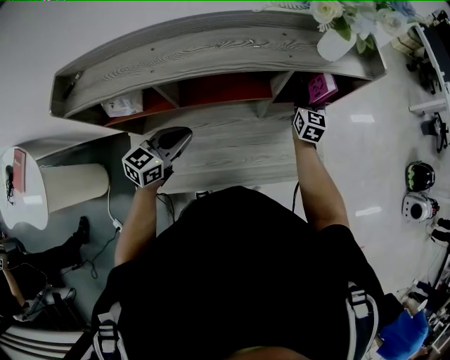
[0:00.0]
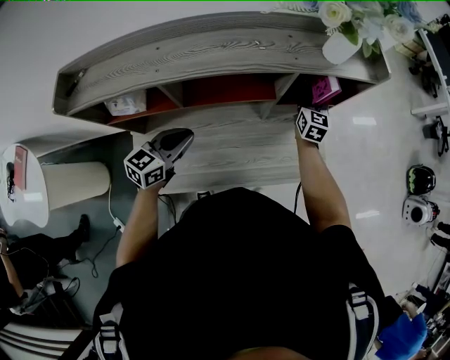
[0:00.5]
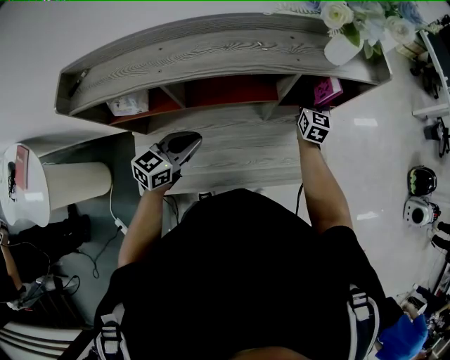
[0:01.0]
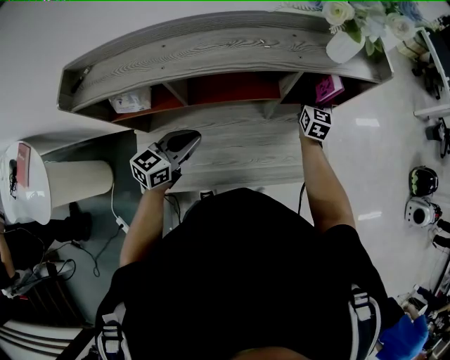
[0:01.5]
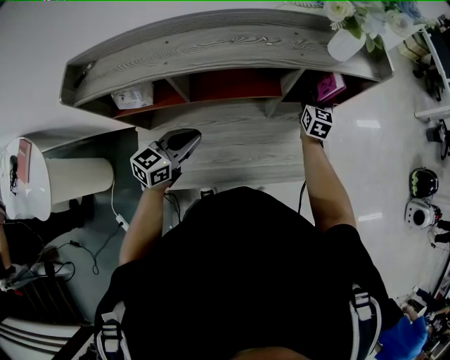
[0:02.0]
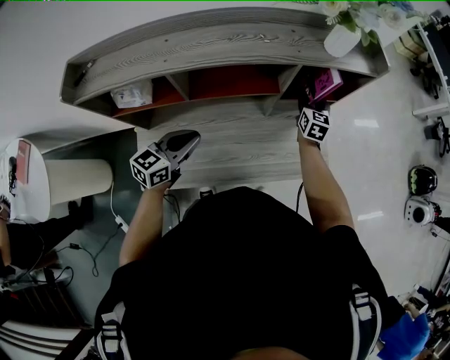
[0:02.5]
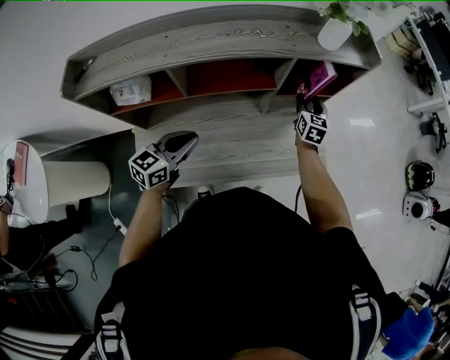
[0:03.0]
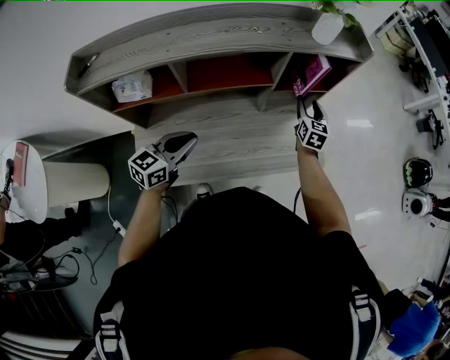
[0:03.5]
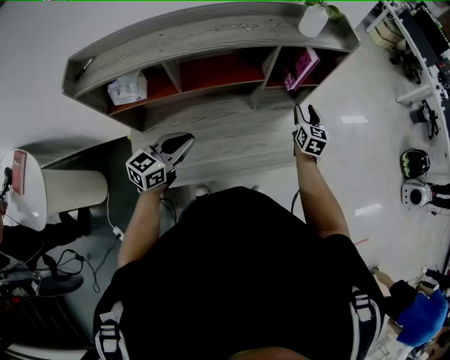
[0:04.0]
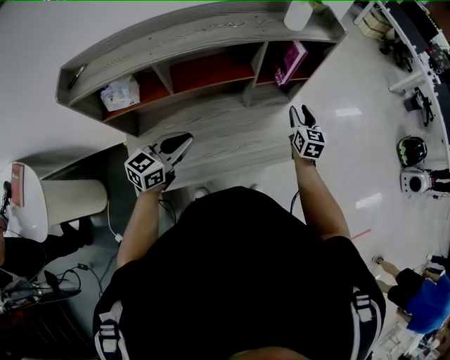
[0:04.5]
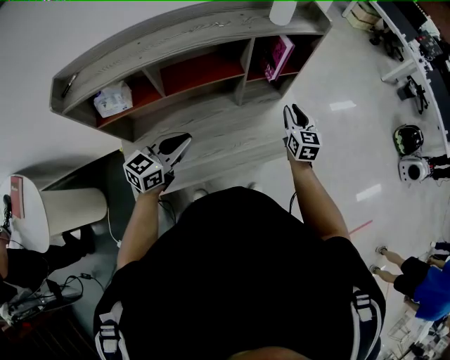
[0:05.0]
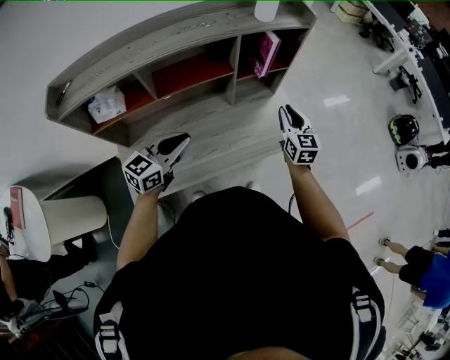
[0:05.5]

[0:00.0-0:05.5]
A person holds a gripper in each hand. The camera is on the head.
0:00.0 to 0:02.0: The grippers make only small movements.
0:02.0 to 0:03.5: The left gripper moves backward, roughly 5 cm; the right gripper heads backward and to the right, covering about 10 cm.
0:03.5 to 0:05.5: The left gripper moves to the right, roughly 5 cm; the right gripper moves backward, upward and to the right, about 15 cm, and closes.

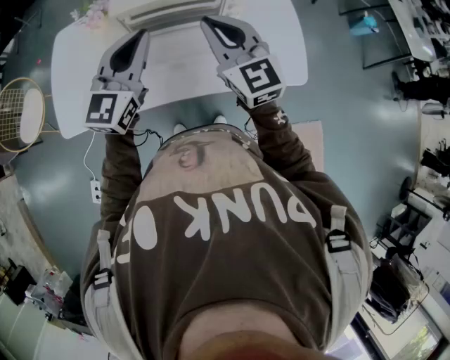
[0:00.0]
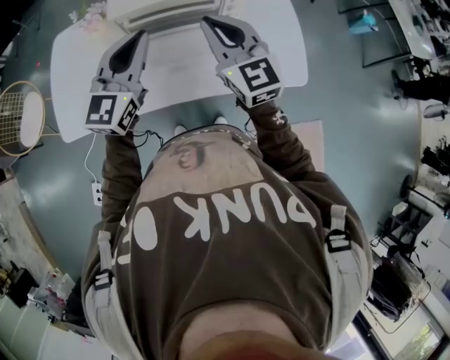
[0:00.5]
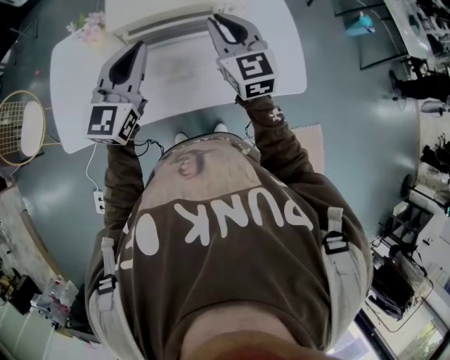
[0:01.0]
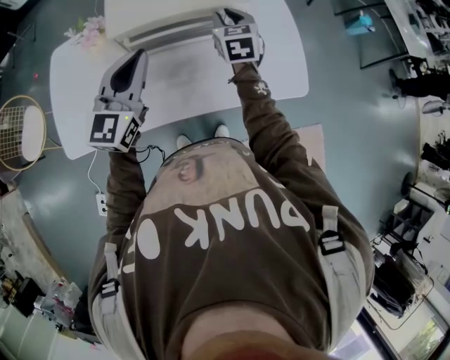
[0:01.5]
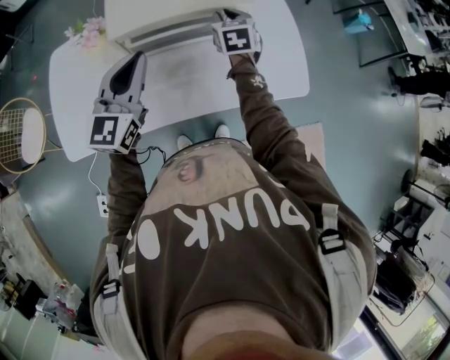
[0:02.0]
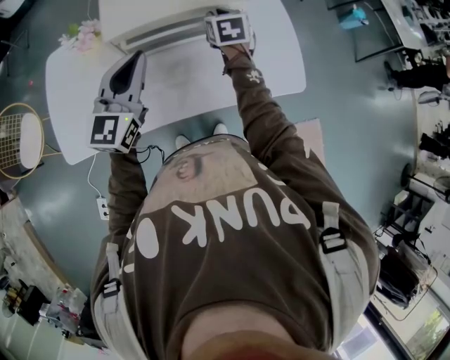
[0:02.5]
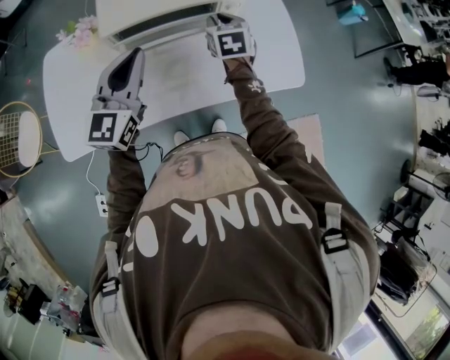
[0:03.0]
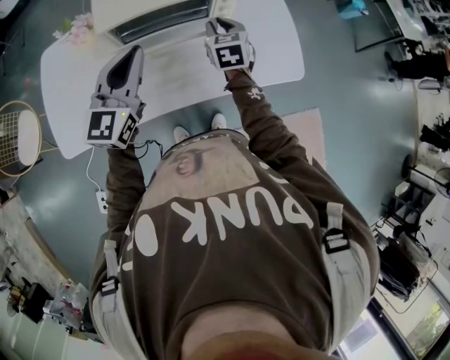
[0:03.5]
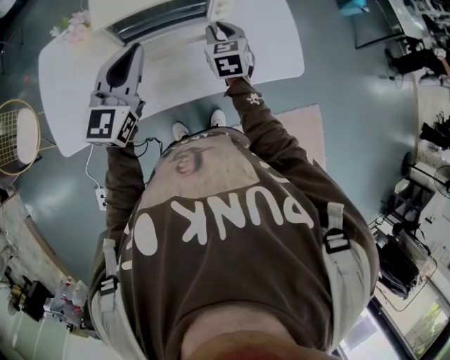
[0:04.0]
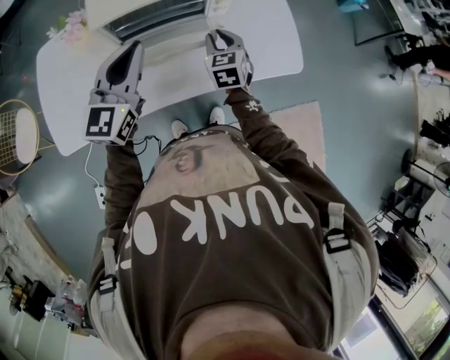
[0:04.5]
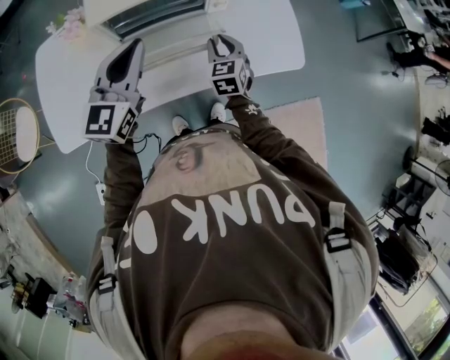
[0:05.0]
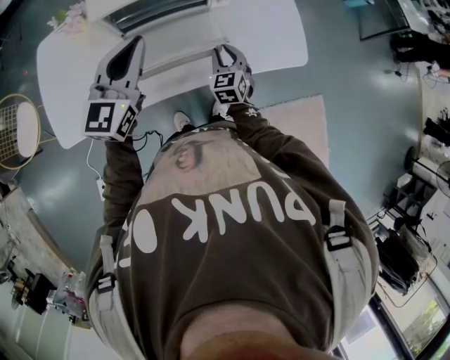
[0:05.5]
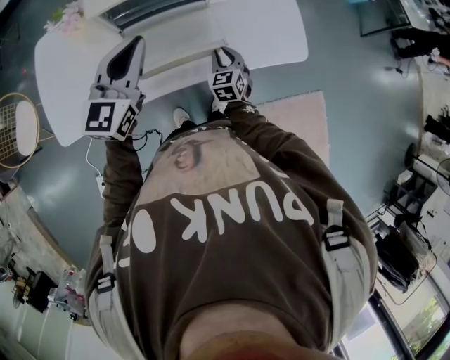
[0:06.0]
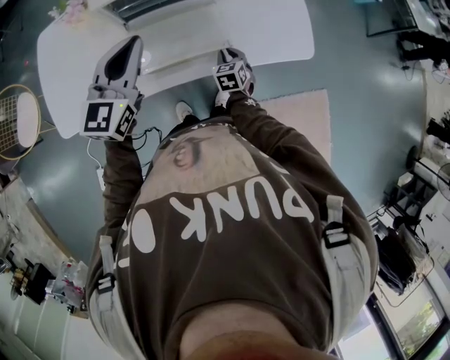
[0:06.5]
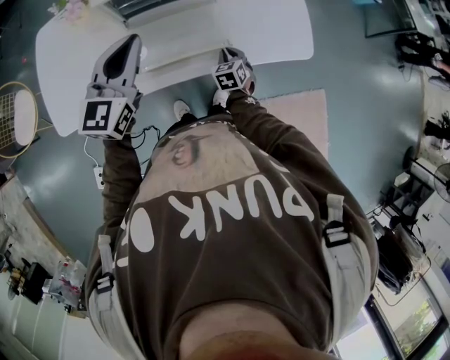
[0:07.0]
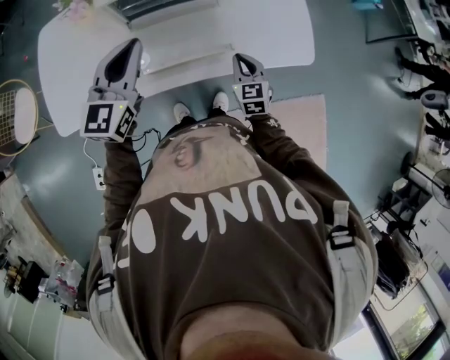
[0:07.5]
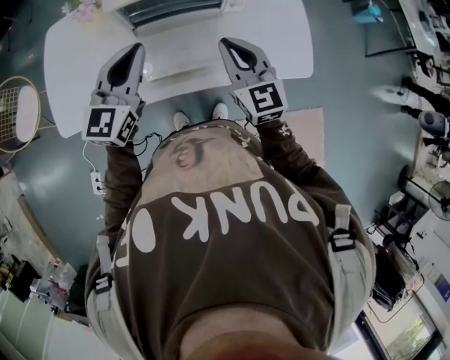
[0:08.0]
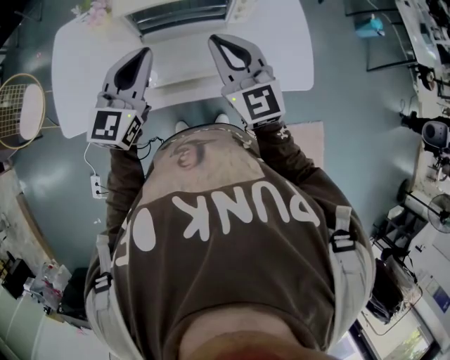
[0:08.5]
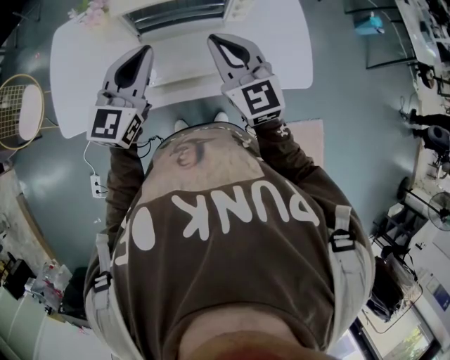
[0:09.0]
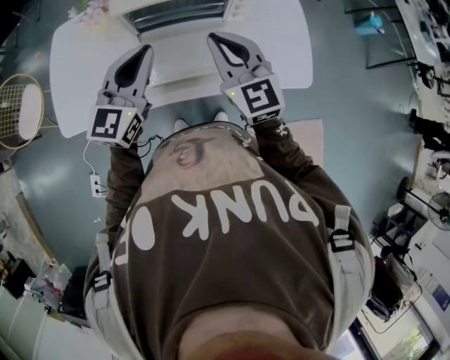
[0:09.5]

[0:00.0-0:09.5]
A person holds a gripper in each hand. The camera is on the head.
0:00.0 to 0:02.0: The right gripper travels forward and downward by about 25 cm, and swivels about 40 degrees, while the left gripper changes place by some 5 cm.
0:02.0 to 0:04.0: The right gripper moves backward, approximately 10 cm.
0:04.0 to 0:05.5: The right gripper travels downward and backward by roughly 15 cm.
0:05.5 to 0:07.5: The right gripper moves about 10 cm downward and comes back, and closes its fingers.
0:07.5 to 0:09.5: The right gripper travels upward and to the left by about 25 cm, and rotates about 30 degrees.

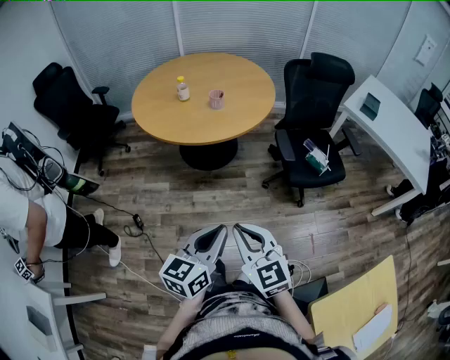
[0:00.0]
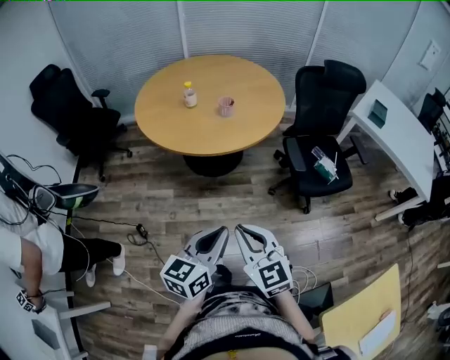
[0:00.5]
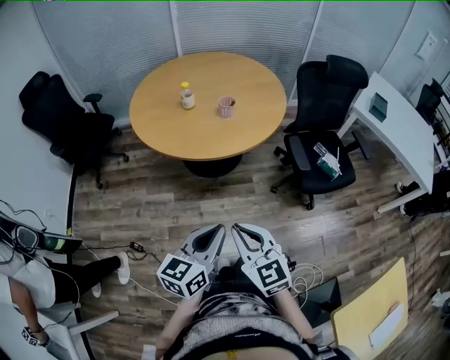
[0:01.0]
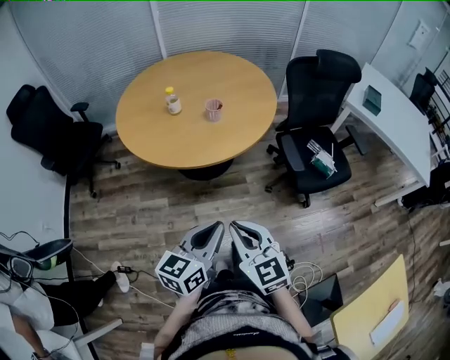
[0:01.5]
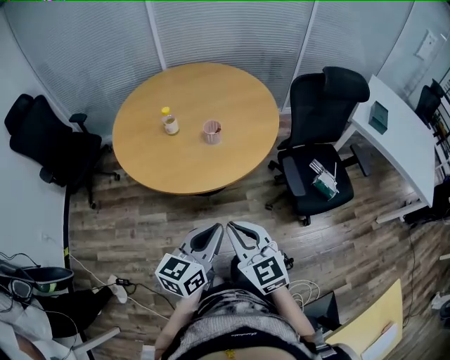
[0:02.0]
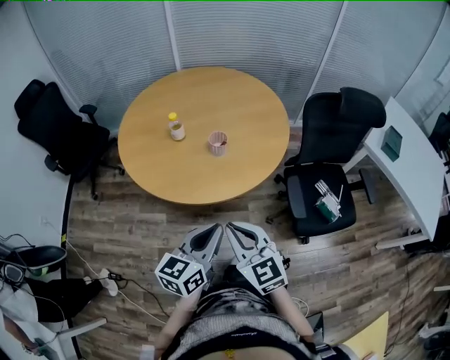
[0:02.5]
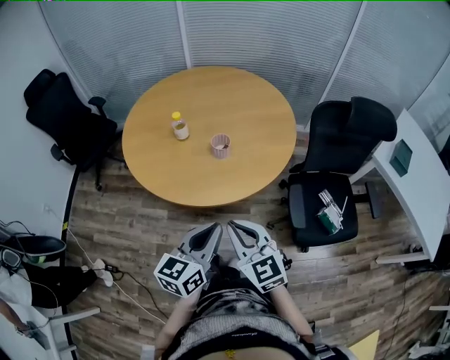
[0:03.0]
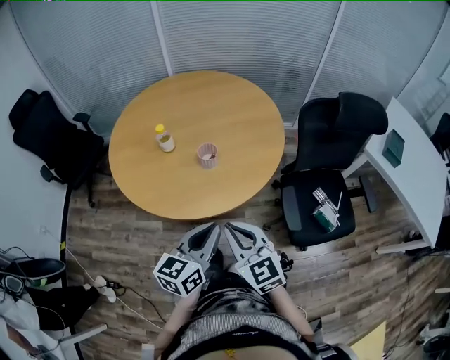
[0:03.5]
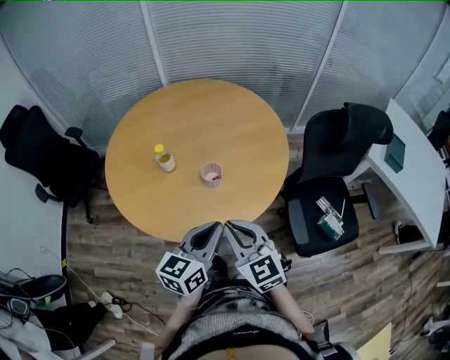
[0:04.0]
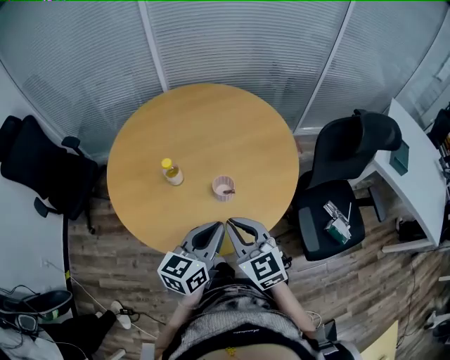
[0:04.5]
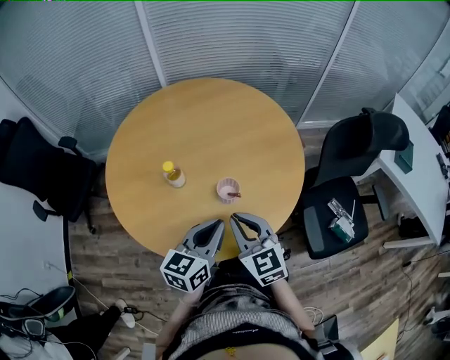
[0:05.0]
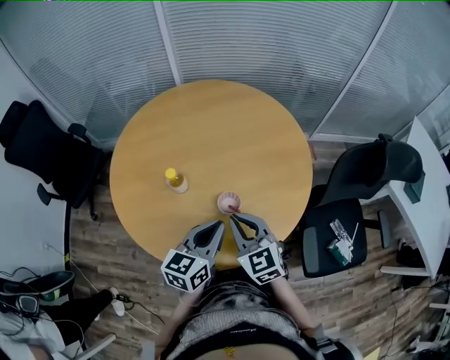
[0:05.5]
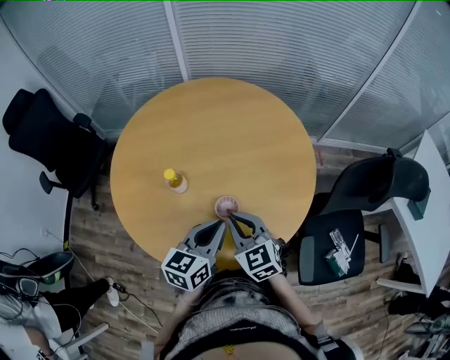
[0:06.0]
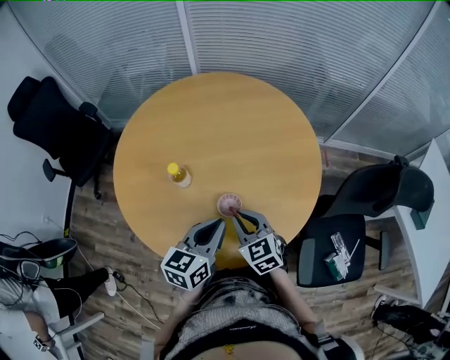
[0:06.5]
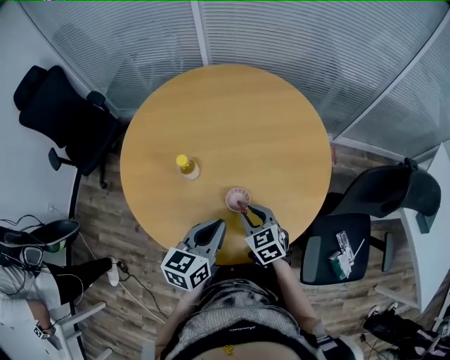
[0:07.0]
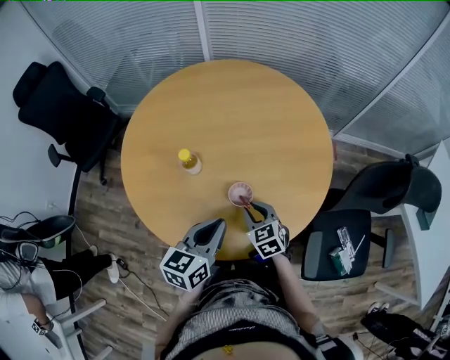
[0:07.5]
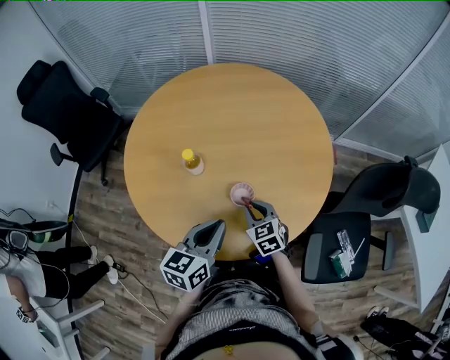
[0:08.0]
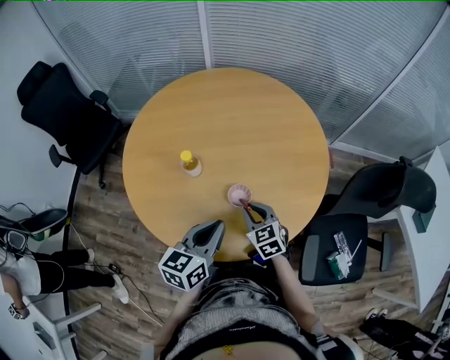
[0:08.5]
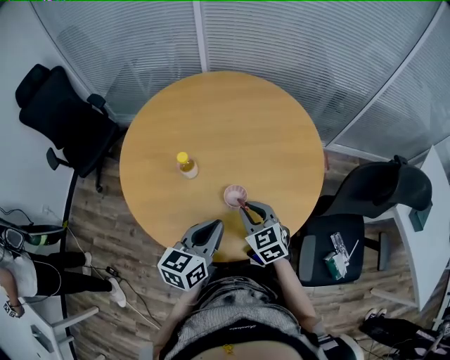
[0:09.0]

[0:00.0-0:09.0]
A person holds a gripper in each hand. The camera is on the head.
0:00.0 to 0:02.0: Both grippers move forward, approximately 30 cm.
0:02.0 to 0:04.5: Both grippers travel together forward, approximately 30 cm.
0:04.5 to 0:07.0: The left gripper goes about 10 cm forward and downward, while the right gripper travels downward and forward by about 20 cm, and rotates some 30 degrees.
0:07.0 to 0:09.0: The right gripper moves some 5 cm.

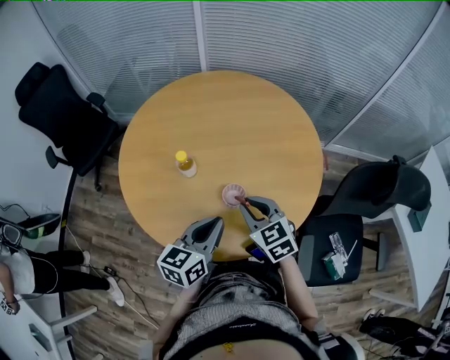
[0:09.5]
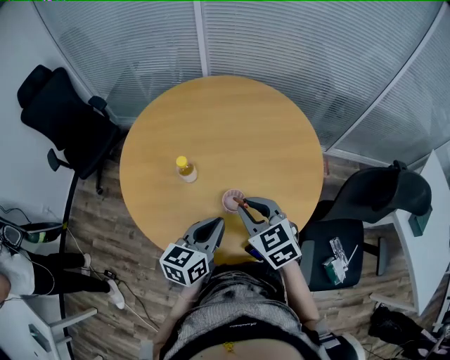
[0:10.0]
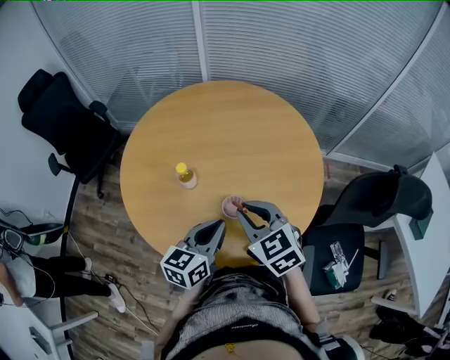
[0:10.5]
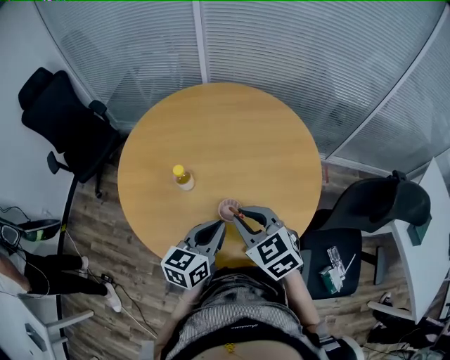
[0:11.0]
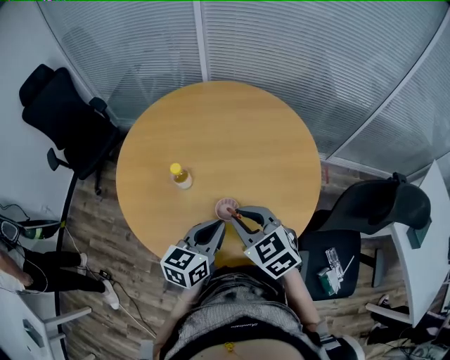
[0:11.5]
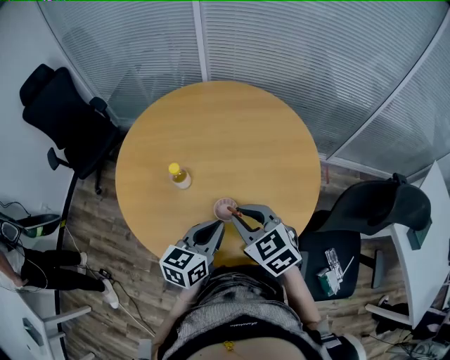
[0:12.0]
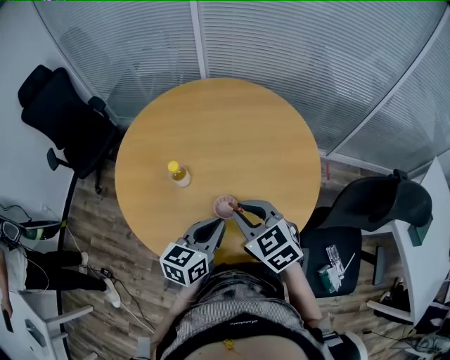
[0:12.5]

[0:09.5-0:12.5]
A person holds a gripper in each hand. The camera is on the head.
0:09.5 to 0:11.0: The right gripper moves upward, about 5 cm.
0:11.0 to 0:12.5: The grippers stay close to where they were, moving slightly.
